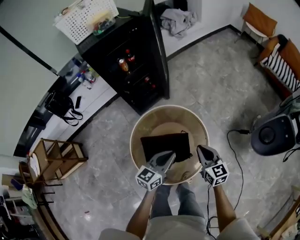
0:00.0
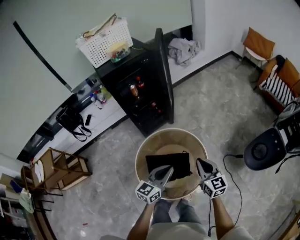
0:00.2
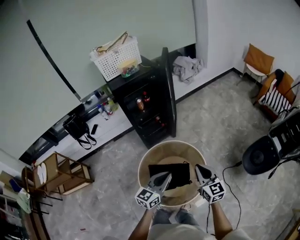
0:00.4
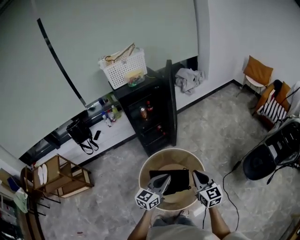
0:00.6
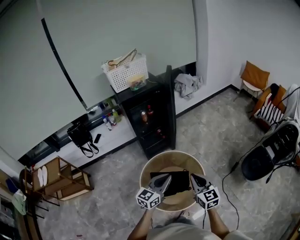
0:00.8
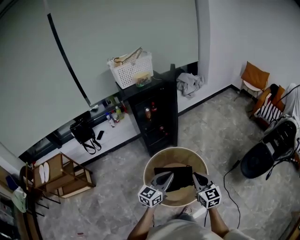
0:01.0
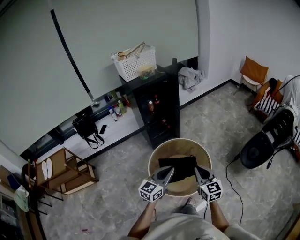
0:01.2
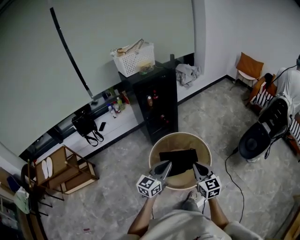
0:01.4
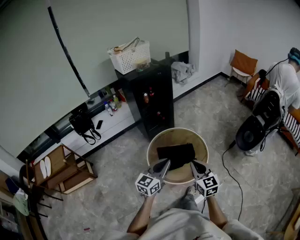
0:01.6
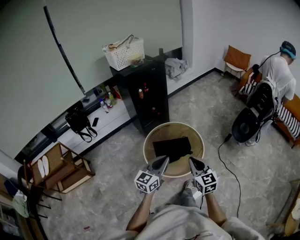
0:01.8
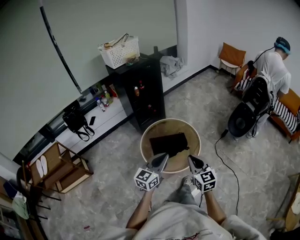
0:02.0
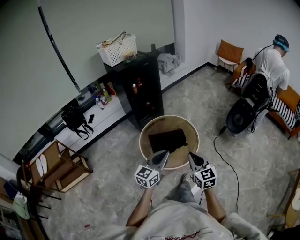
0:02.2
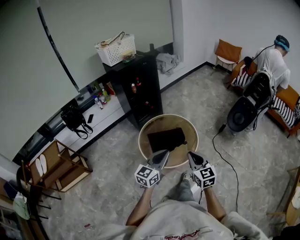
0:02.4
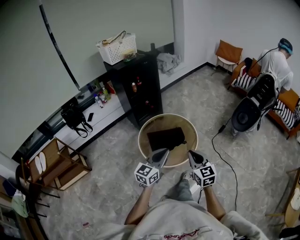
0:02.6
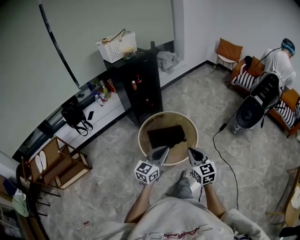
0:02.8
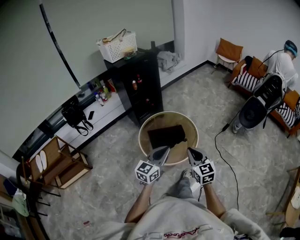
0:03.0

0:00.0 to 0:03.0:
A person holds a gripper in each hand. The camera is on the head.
0:00.0 to 0:01.6: Both grippers move backward, upward and to the left, some 35 cm.
0:01.6 to 0:03.0: The right gripper moves backward, approximately 10 cm, while the left gripper goes about 10 cm backward and to the right.

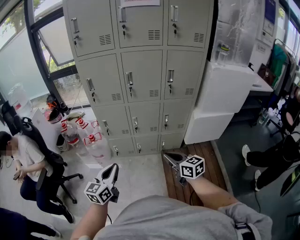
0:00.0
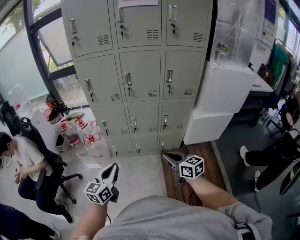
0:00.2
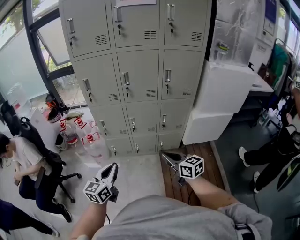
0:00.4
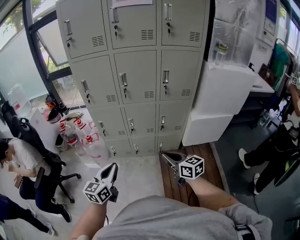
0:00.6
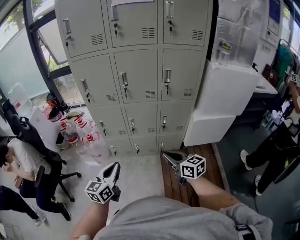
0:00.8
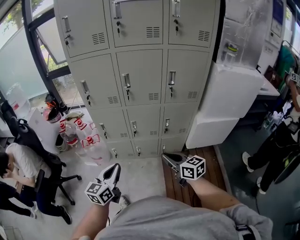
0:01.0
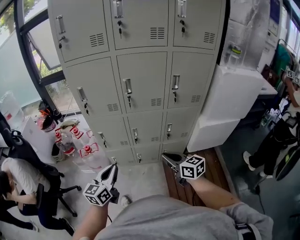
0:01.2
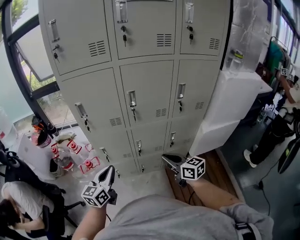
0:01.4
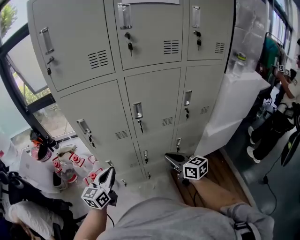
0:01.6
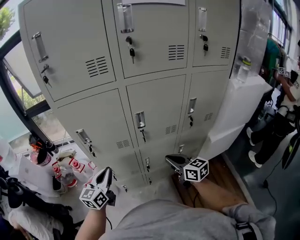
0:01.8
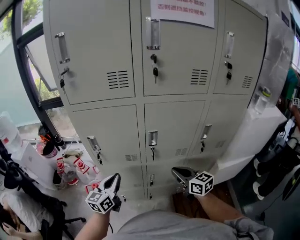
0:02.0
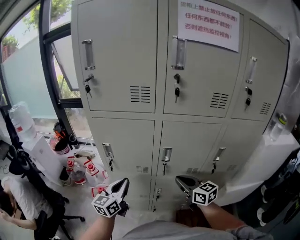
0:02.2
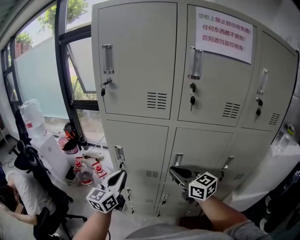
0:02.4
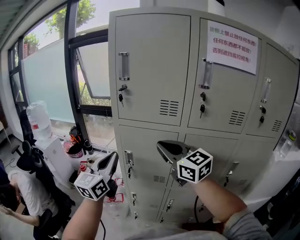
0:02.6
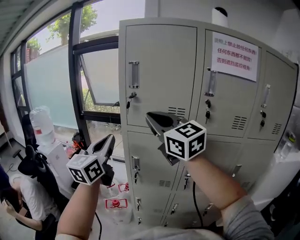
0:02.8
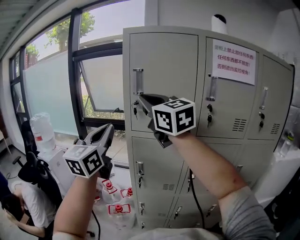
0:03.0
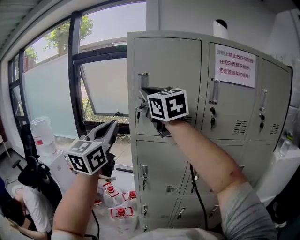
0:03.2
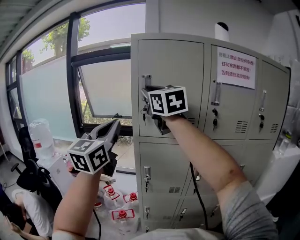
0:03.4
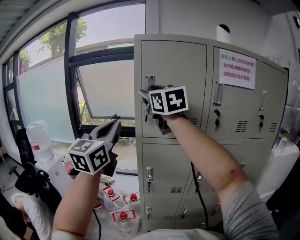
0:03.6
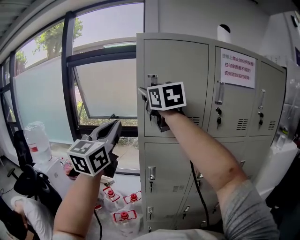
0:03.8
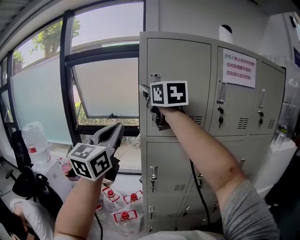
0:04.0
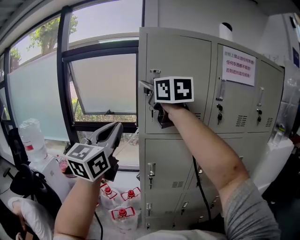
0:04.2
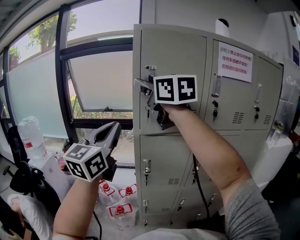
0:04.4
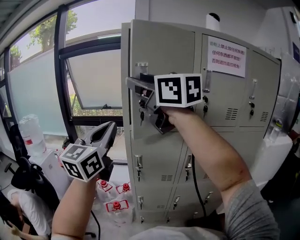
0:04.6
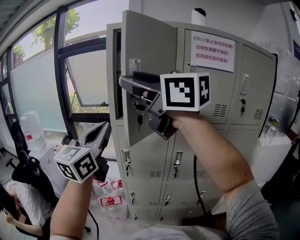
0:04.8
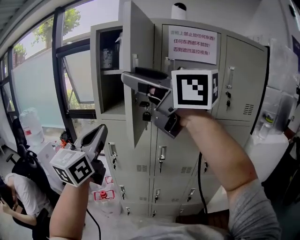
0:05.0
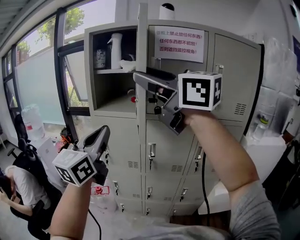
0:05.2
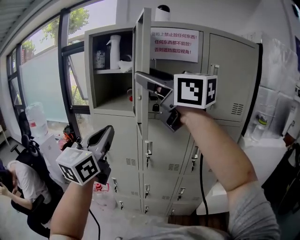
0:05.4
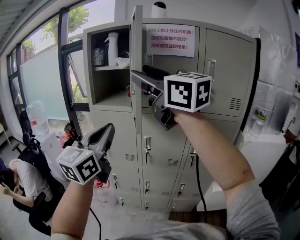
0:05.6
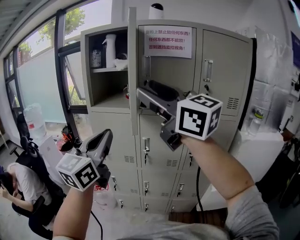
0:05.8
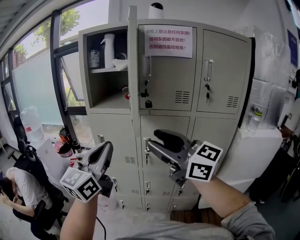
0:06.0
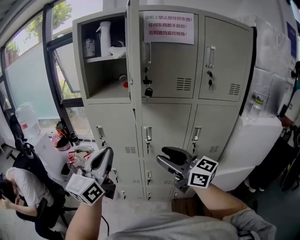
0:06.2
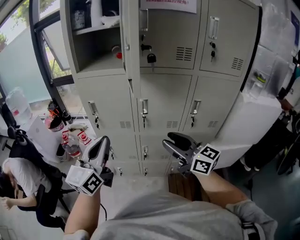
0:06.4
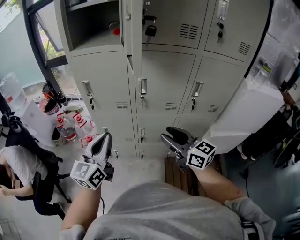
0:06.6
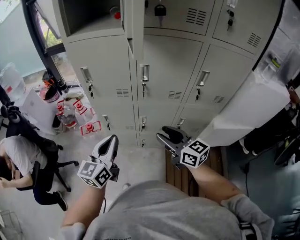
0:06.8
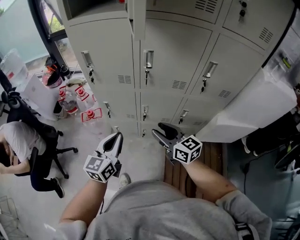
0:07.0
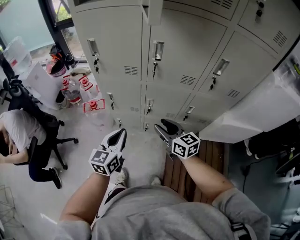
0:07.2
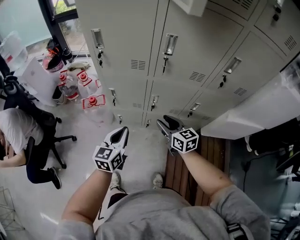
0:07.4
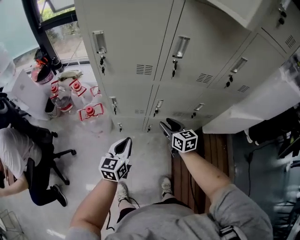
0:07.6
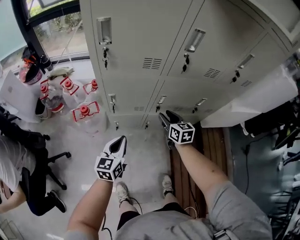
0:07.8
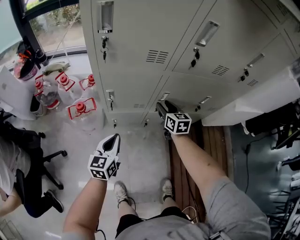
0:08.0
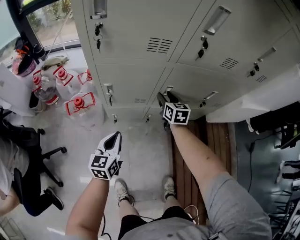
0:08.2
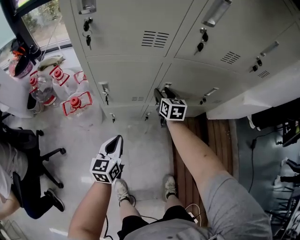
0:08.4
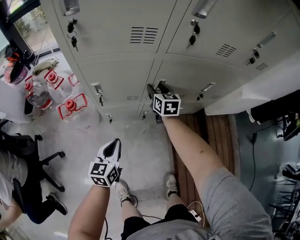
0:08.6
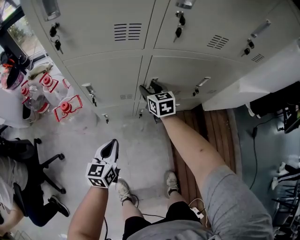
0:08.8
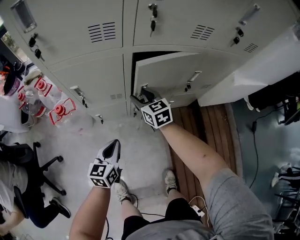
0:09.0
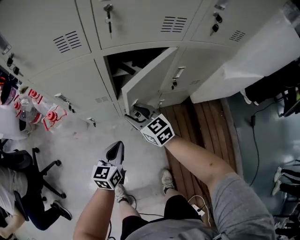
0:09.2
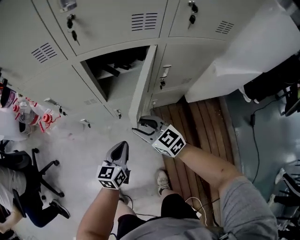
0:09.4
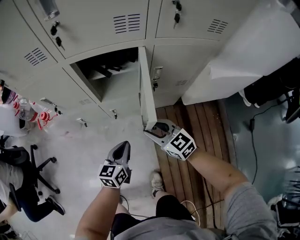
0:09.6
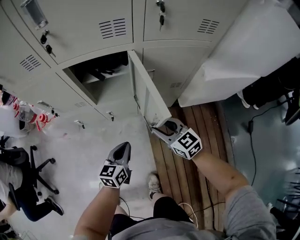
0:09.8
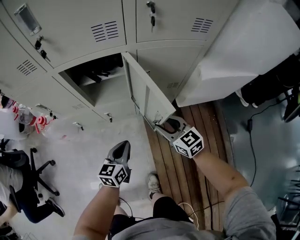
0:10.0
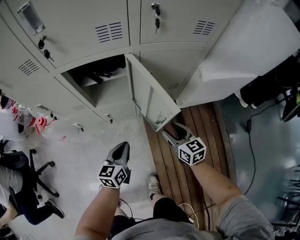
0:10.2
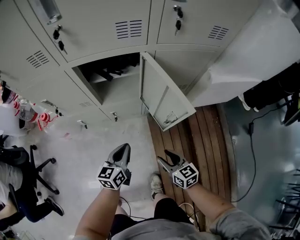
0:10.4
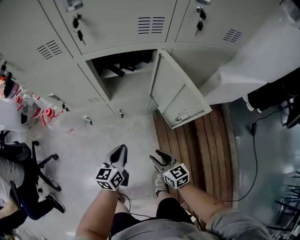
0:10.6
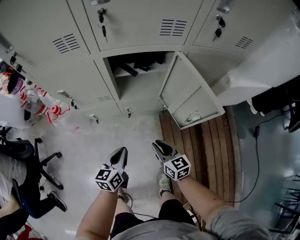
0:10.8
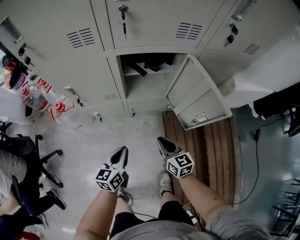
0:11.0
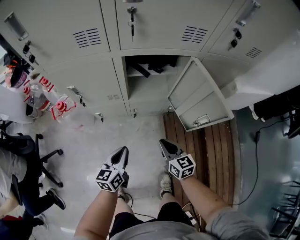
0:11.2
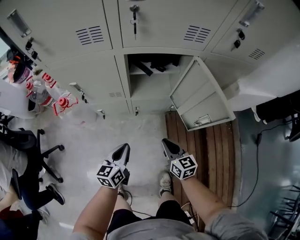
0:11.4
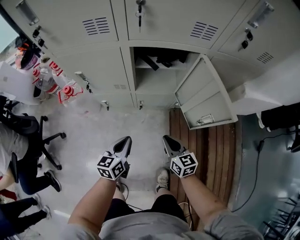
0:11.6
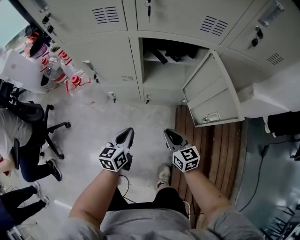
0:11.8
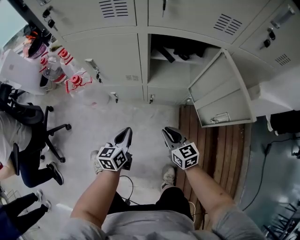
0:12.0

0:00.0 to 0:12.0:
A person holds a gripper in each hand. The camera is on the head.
0:00.0 to 0:01.6: Both grippers move forward, approximately 30 cm.
0:01.6 to 0:03.0: The right gripper goes roughly 60 cm upward, to the left and forward, and turns by roughly 40 degrees; the left gripper moves upward, about 40 cm, and rotates roughly 40 degrees.
0:03.0 to 0:04.4: The right gripper goes forward and returns, roughly 10 cm each way, and opens its fingers.
0:04.4 to 0:06.0: The left gripper moves backward and to the right, roughly 30 cm; the right gripper moves backward, to the right and downward, roughly 50 cm, and swivels some 30 degrees.
0:06.0 to 0:07.6: The grippers both shift downward by approximately 60 cm. The left gripper tips its fingers downward by roughly 30 degrees. The right gripper points its fingers roughly 40 degrees further downward.
0:07.6 to 0:09.0: The right gripper travels downward and forward by about 15 cm. Meanwhile the left gripper heads downward, covering some 15 cm.
0:09.0 to 0:10.4: The right gripper is displaced backward and to the right by some 40 cm. Meanwhile the left gripper is displaced to the right by about 25 cm.
0:10.4 to 0:12.0: The right gripper goes about 20 cm to the left and forward, and closes its fingers; the left gripper goes approximately 20 cm to the left.

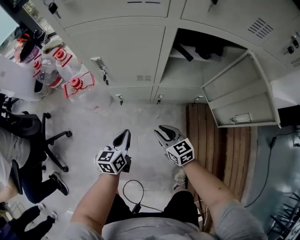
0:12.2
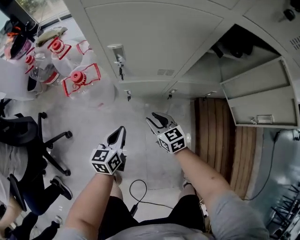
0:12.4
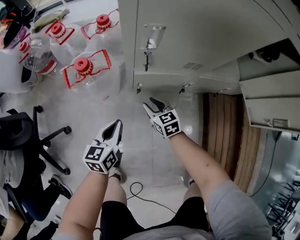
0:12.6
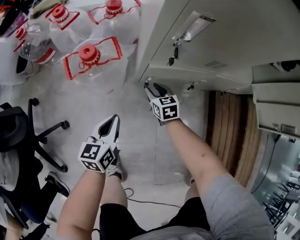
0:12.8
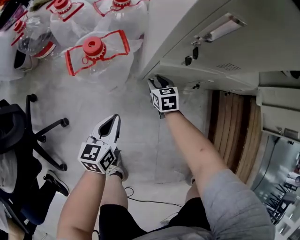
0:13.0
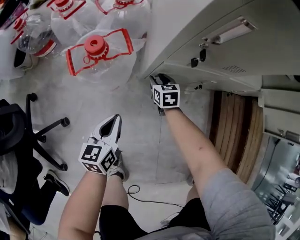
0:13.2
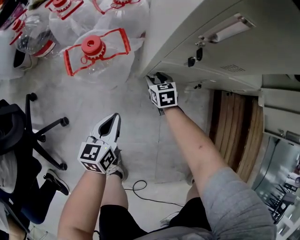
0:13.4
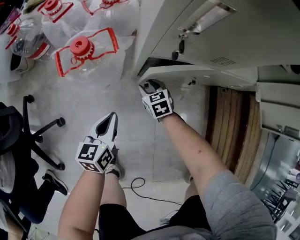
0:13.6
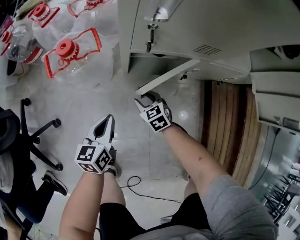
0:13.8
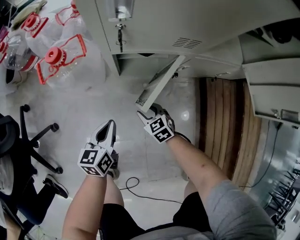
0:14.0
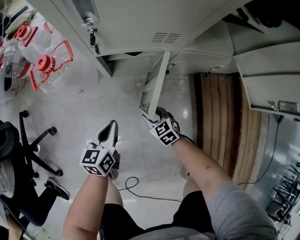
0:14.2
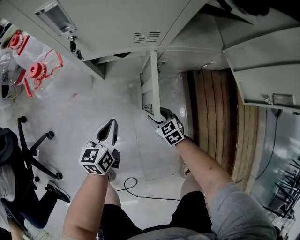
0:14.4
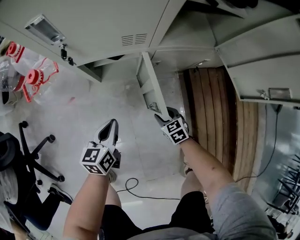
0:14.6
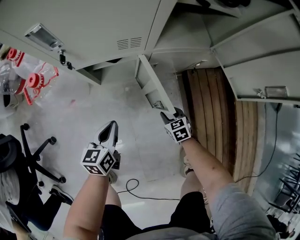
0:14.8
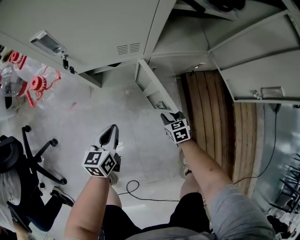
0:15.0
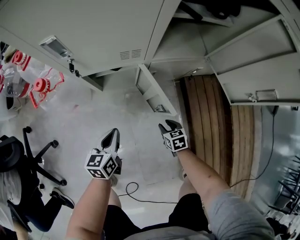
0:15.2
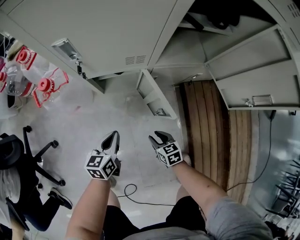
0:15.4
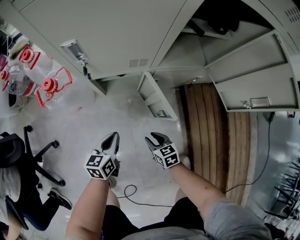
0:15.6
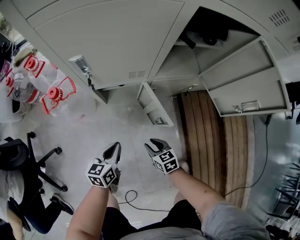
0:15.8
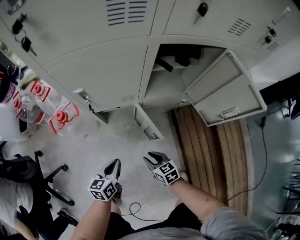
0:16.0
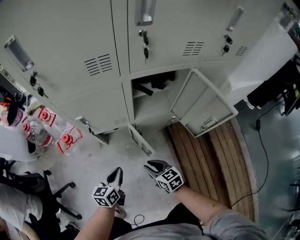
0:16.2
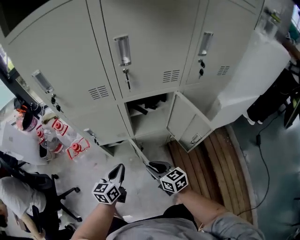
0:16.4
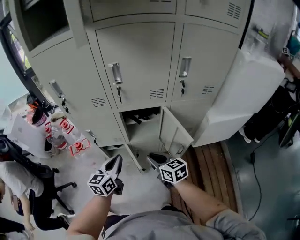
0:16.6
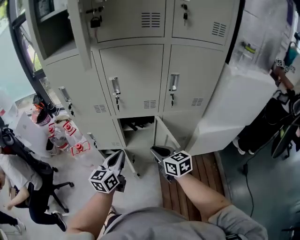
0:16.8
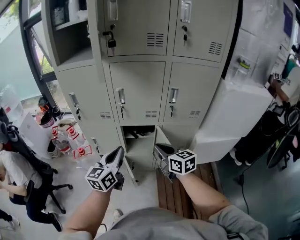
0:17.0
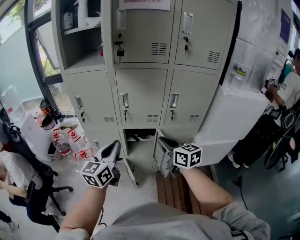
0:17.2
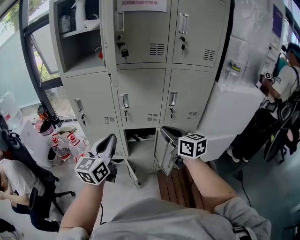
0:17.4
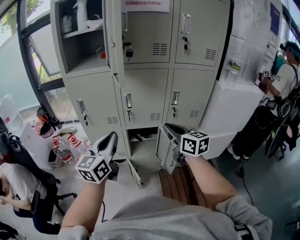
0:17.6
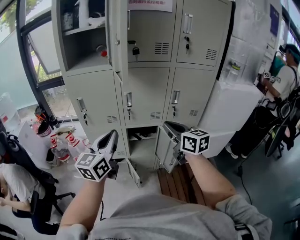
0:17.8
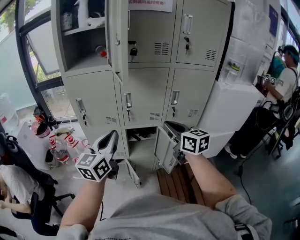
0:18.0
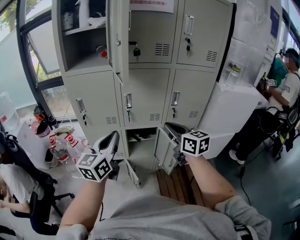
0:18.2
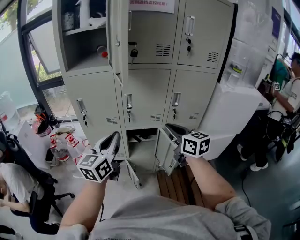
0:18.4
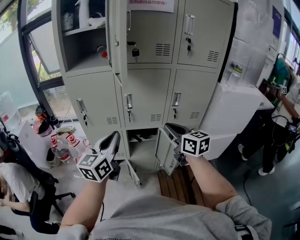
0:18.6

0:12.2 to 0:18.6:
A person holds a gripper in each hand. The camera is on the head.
0:12.2 to 0:13.8: The right gripper heads downward, to the left and forward, covering about 35 cm, and swivels about 20 degrees; the left gripper goes approximately 25 cm to the left and downward.
0:13.8 to 0:15.4: The left gripper heads to the right, covering approximately 15 cm. The right gripper shifts about 25 cm to the right and backward, and swivels some 20 degrees.
0:15.4 to 0:17.0: Both grippers move upward, roughly 70 cm. The left gripper tips its fingers upward by about 30 degrees. The right gripper tilts its fingers approximately 40 degrees upward, and closes.
0:17.0 to 0:18.6: The left gripper shifts roughly 15 cm upward and to the left, while the right gripper goes about 15 cm upward.

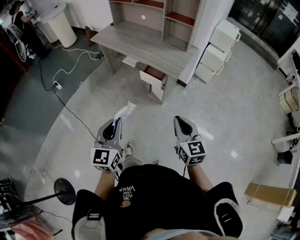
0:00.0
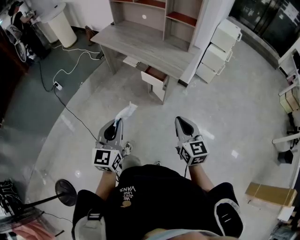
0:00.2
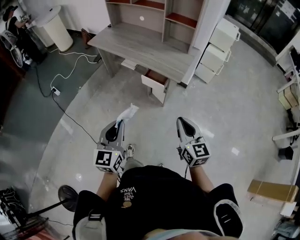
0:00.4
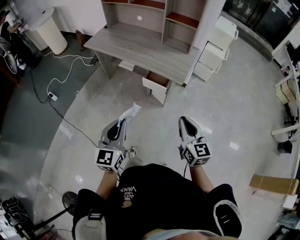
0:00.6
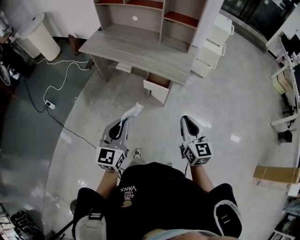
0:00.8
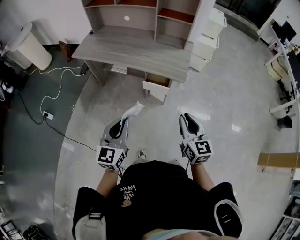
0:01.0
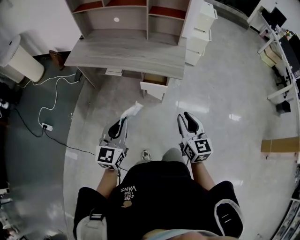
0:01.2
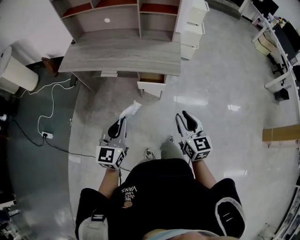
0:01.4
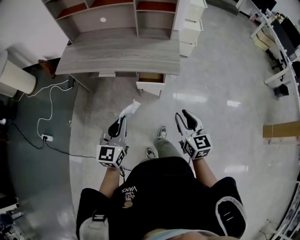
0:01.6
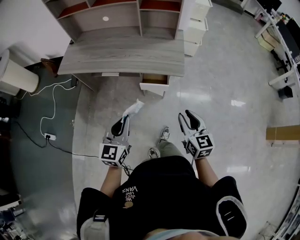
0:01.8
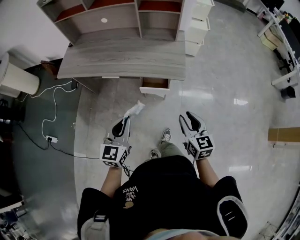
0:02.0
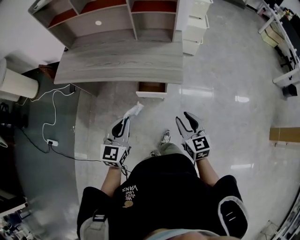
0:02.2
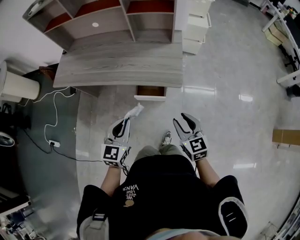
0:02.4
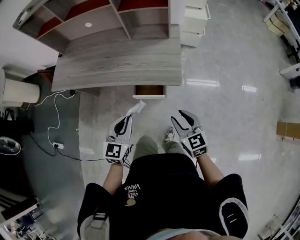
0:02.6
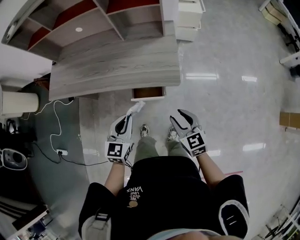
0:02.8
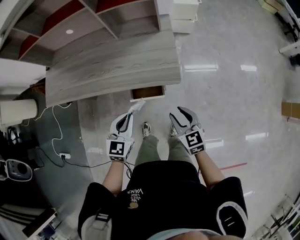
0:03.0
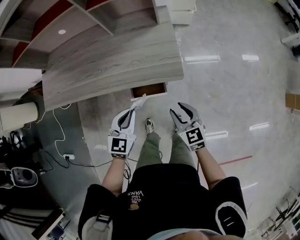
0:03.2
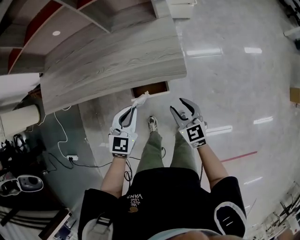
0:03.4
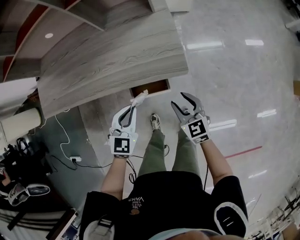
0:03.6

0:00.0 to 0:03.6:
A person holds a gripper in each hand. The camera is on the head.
0:00.0 to 0:01.8: The right gripper moves roughly 20 cm, turns by roughly 30 degrees, and opens. Meanwhile the left gripper changes place by about 30 cm, and changes its angle by approximately 30 degrees.
0:01.8 to 0:03.6: The right gripper moves downward and forward, some 25 cm. Meanwhile the left gripper travels forward and downward by approximately 30 cm, and swivels about 40 degrees.
